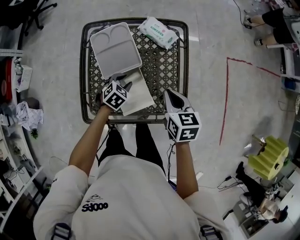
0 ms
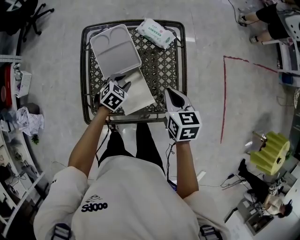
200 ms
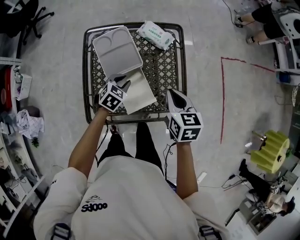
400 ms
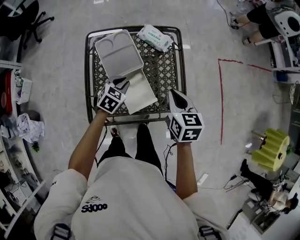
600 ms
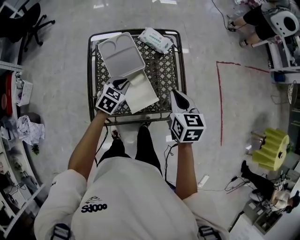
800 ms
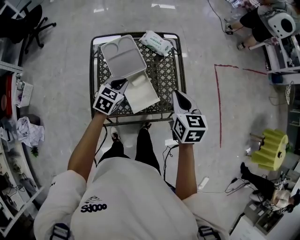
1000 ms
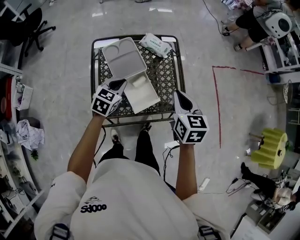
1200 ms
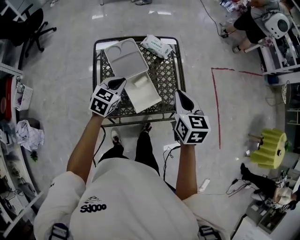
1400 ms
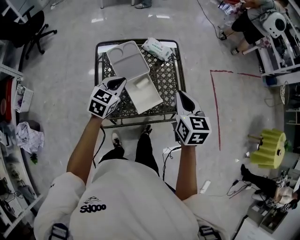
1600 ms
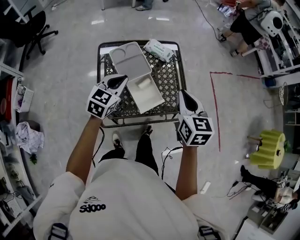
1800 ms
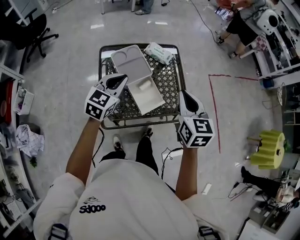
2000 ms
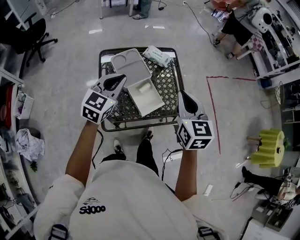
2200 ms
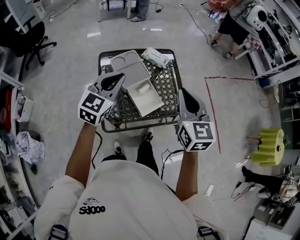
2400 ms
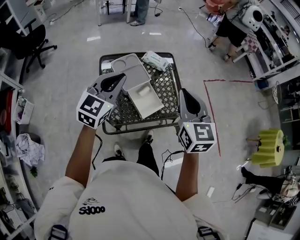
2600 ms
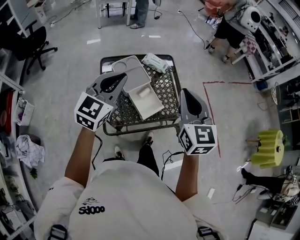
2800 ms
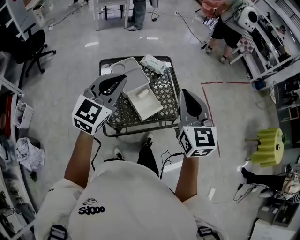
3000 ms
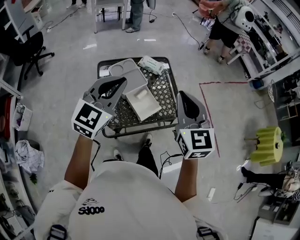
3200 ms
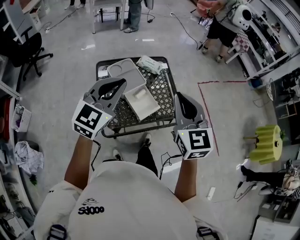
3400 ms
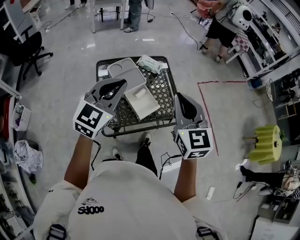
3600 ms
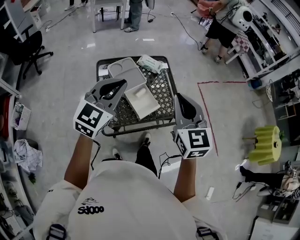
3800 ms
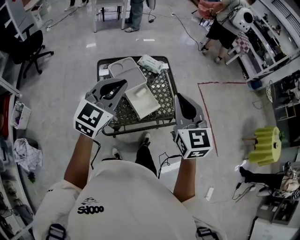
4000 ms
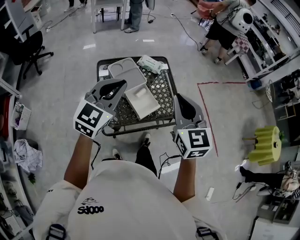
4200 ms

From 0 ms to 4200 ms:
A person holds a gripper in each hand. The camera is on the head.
From 0 ms to 1400 ms: The right gripper travels upward and backward by roughly 15 cm; the left gripper is displaced upward by approximately 20 cm, turns by some 30 degrees, and closes.
From 1400 ms to 2800 ms: The left gripper goes approximately 25 cm upward, and turns by about 30 degrees; the right gripper moves upward and backward, roughly 20 cm, and swivels some 20 degrees.
From 2800 ms to 4200 ms: The grippers move only a little.

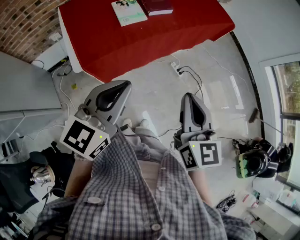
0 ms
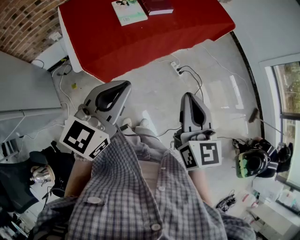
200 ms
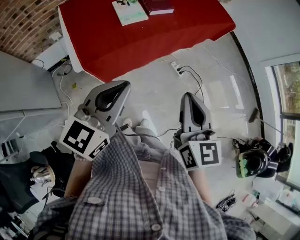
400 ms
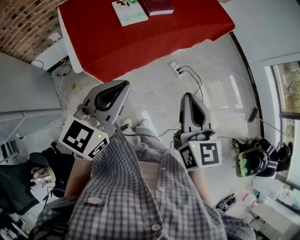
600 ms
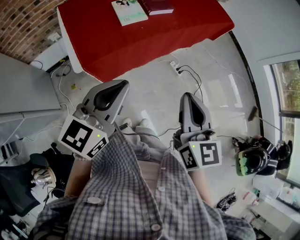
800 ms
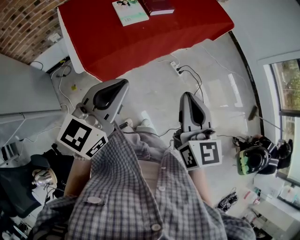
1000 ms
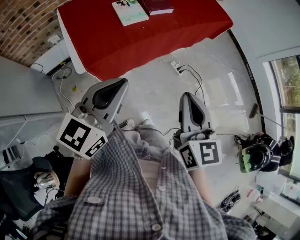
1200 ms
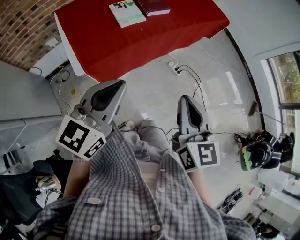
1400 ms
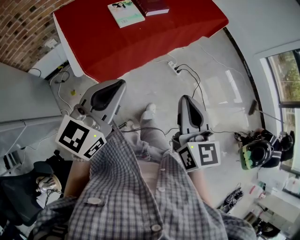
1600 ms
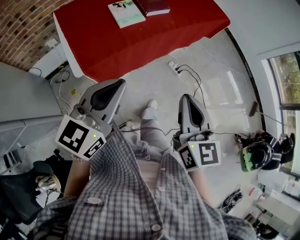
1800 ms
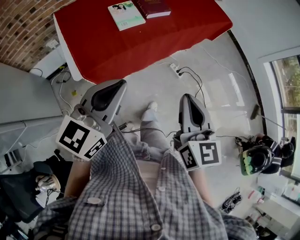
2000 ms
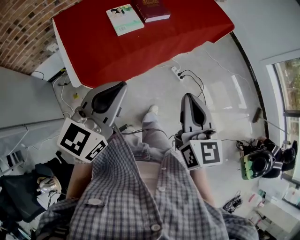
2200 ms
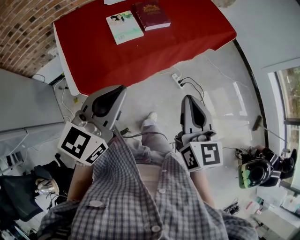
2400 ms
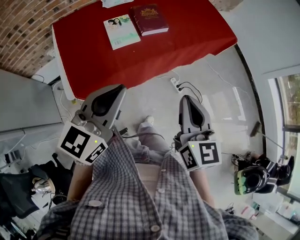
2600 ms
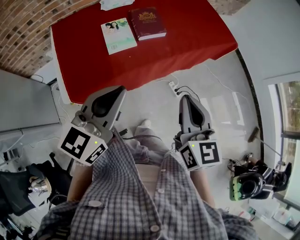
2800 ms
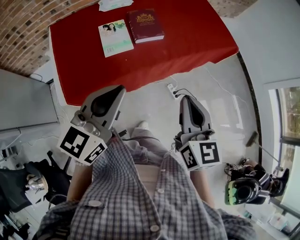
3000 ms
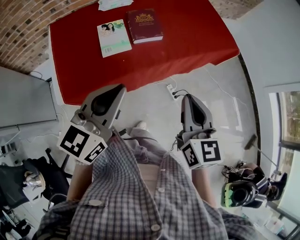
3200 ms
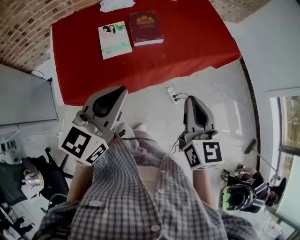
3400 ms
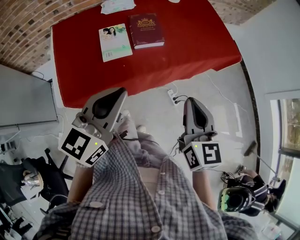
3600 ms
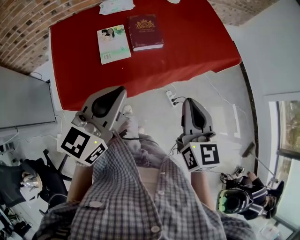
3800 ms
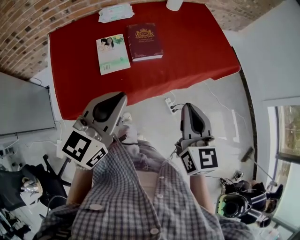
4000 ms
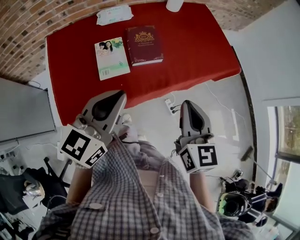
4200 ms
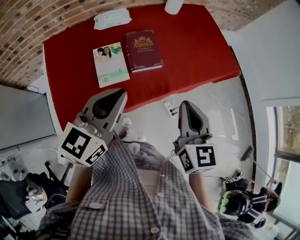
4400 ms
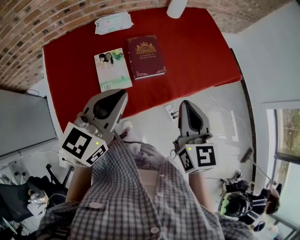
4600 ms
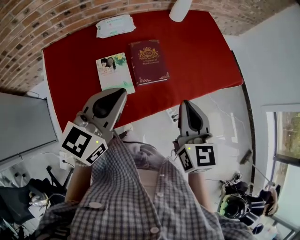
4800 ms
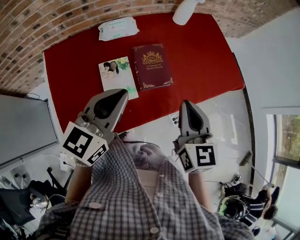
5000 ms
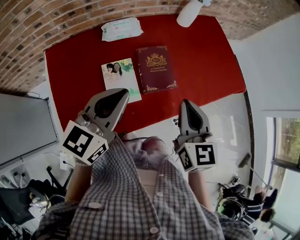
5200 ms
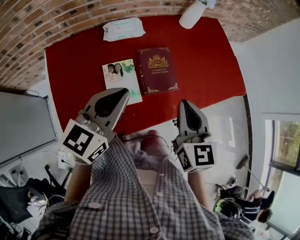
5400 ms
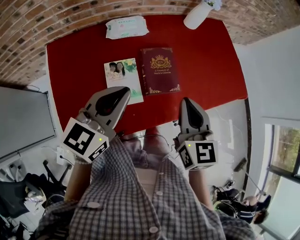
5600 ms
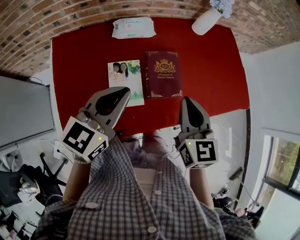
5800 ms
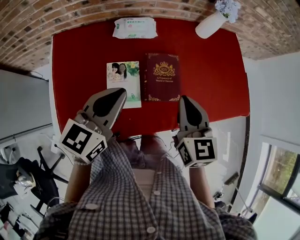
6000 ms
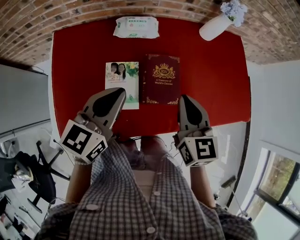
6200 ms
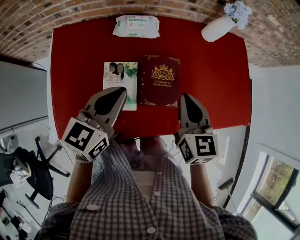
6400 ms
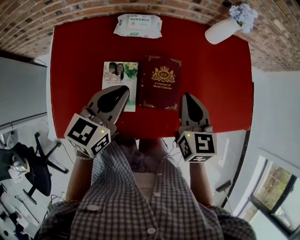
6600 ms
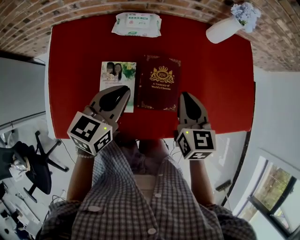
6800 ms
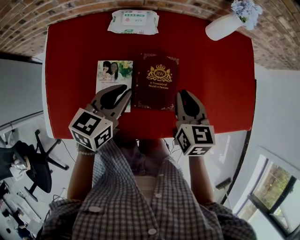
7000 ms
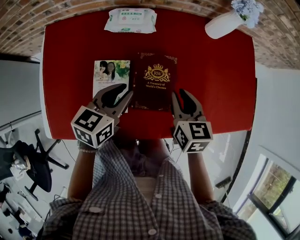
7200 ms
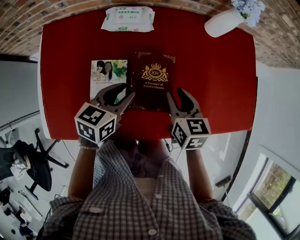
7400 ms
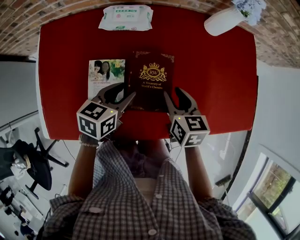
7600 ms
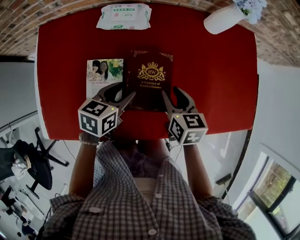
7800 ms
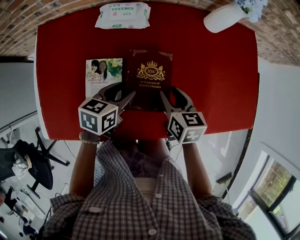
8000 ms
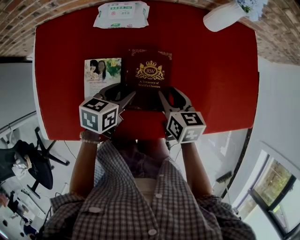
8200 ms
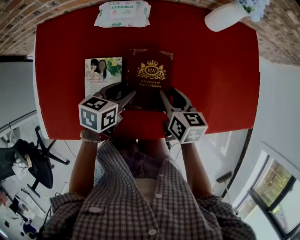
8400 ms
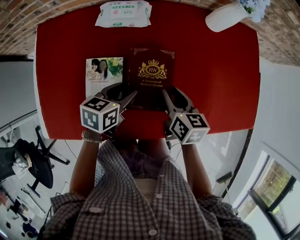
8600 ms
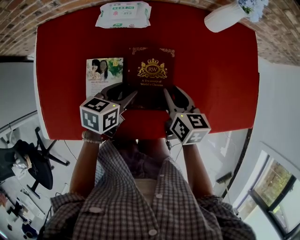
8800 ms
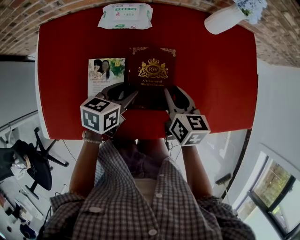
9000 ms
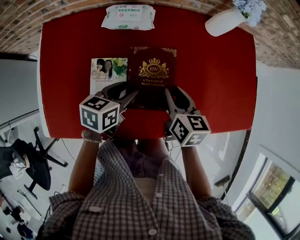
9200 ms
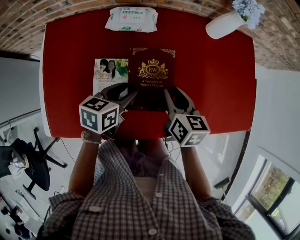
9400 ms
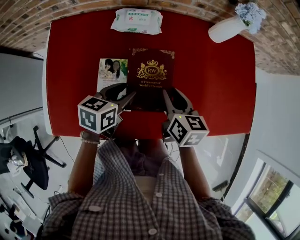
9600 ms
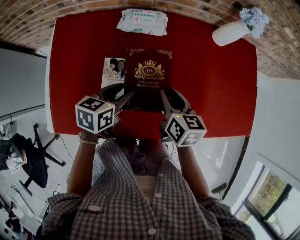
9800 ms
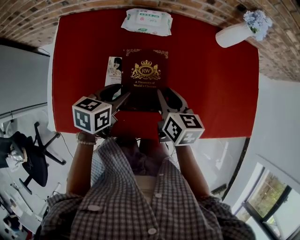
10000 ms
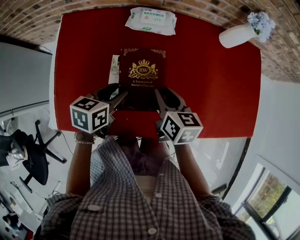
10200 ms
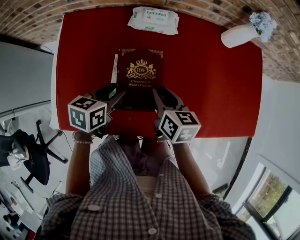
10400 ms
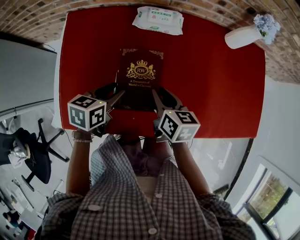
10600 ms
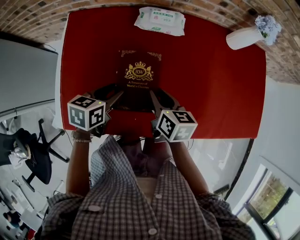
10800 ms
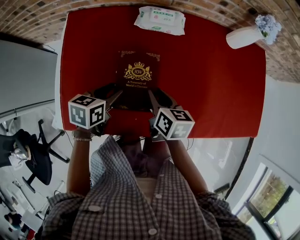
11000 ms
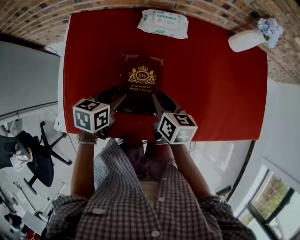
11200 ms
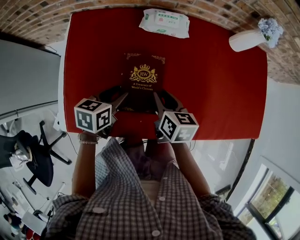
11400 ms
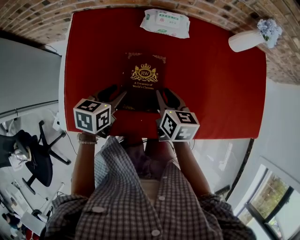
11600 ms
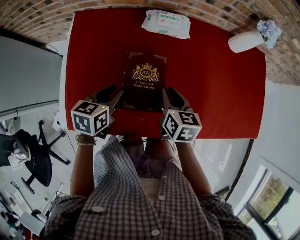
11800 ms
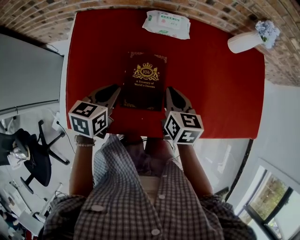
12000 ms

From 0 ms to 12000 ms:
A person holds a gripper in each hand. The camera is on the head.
From 0 ms to 1600 ms: The grippers stay close to where they were, moving slightly.
From 1600 ms to 3000 ms: Both grippers travel together forward, about 20 cm.
From 3000 ms to 4400 ms: The two grippers go about 15 cm forward.
From 4400 ms to 6000 ms: Both grippers move forward and to the left, some 20 cm.
From 6000 ms to 7600 ms: The left gripper travels downward, to the right and forward by approximately 20 cm, turns by approximately 30 degrees, and opens its fingers; the right gripper travels downward and forward by about 20 cm, swivels about 30 degrees, and opens.
From 7600 ms to 9000 ms: There are only small adjustments of the grippers.
From 9000 ms to 10400 ms: Both grippers move to the left, approximately 10 cm.
From 10400 ms to 12000 ms: The right gripper closes; the left gripper goes approximately 5 cm to the left, and closes up.

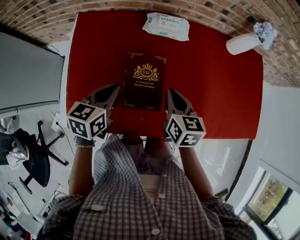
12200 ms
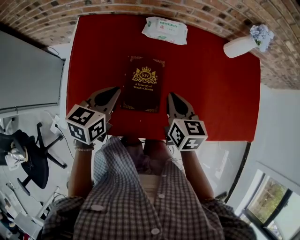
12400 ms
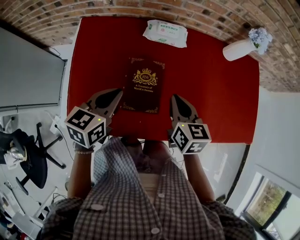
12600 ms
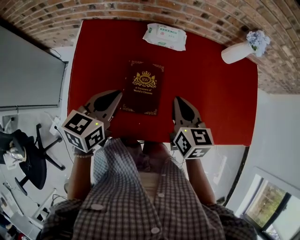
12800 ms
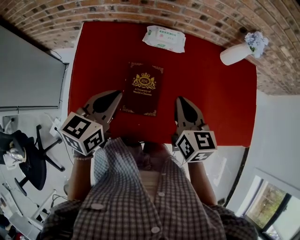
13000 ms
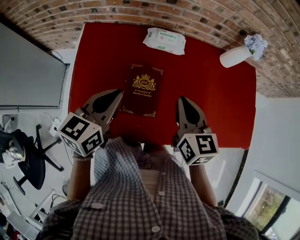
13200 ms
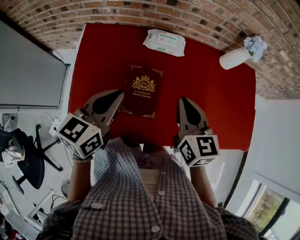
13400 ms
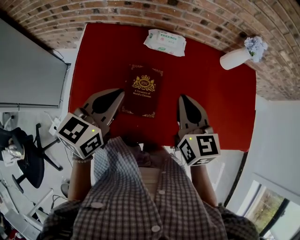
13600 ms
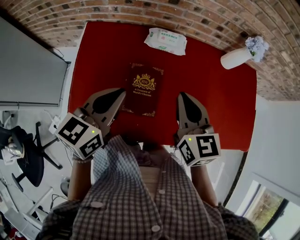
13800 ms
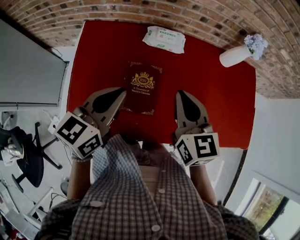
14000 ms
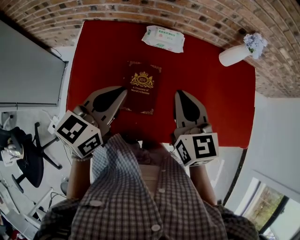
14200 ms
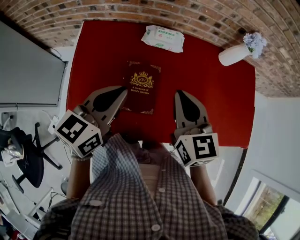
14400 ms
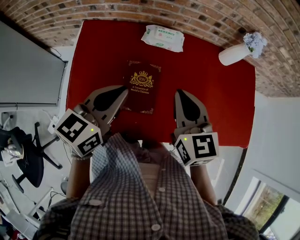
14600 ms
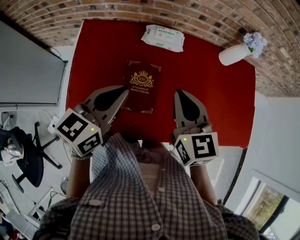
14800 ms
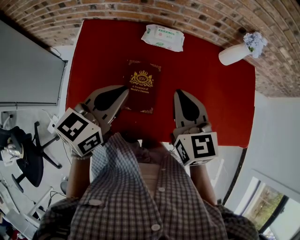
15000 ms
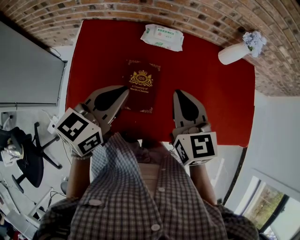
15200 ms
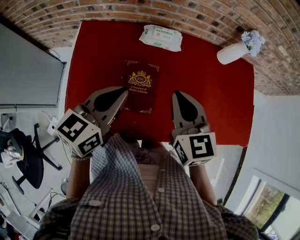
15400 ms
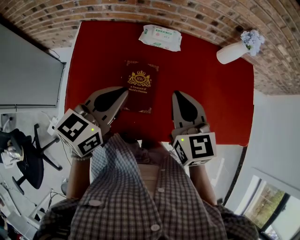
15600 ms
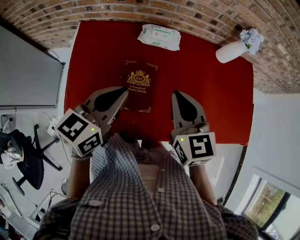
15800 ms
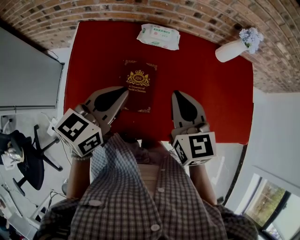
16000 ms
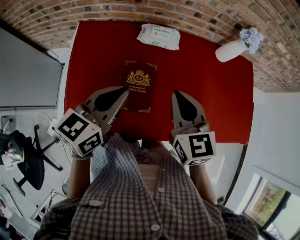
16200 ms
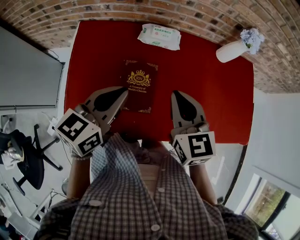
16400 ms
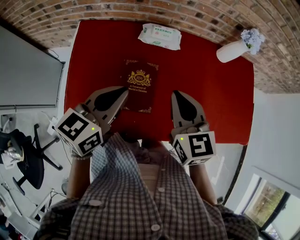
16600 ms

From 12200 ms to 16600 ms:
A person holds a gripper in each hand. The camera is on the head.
From 12200 ms to 13600 ms: Both grippers move upward, roughly 15 cm.
From 13600 ms to 15200 ms: There are only small adjustments of the grippers.
From 15200 ms to 16600 ms: Both grippers stay about where they are.

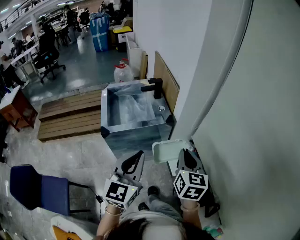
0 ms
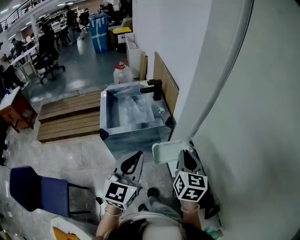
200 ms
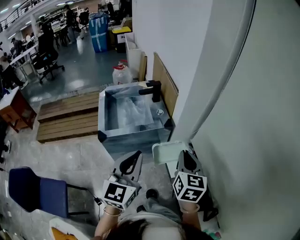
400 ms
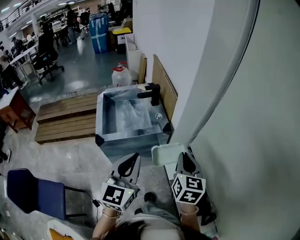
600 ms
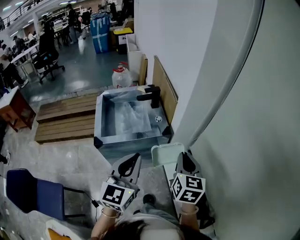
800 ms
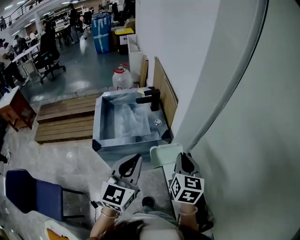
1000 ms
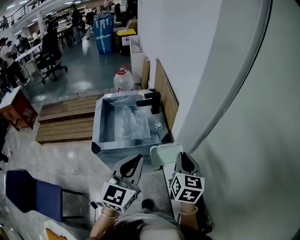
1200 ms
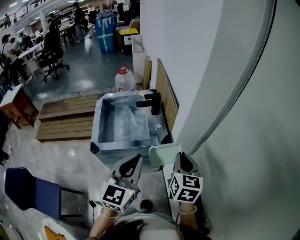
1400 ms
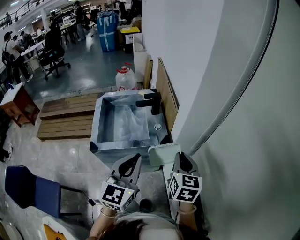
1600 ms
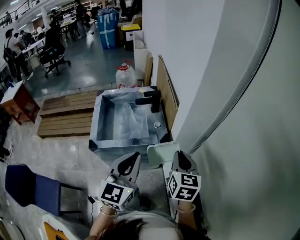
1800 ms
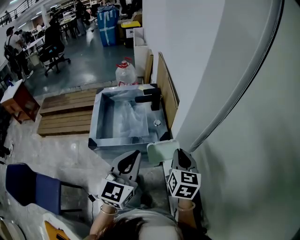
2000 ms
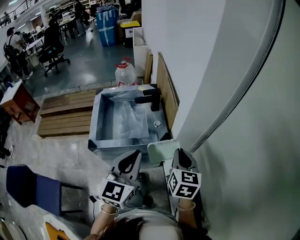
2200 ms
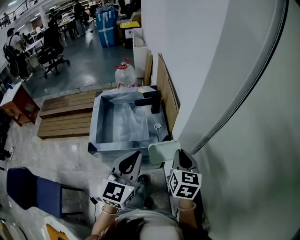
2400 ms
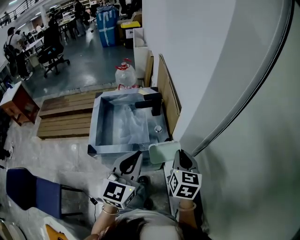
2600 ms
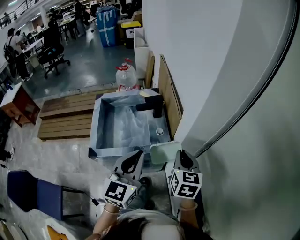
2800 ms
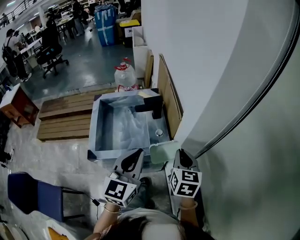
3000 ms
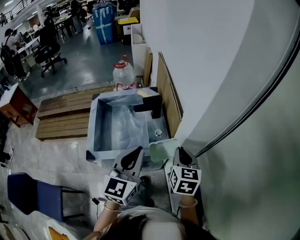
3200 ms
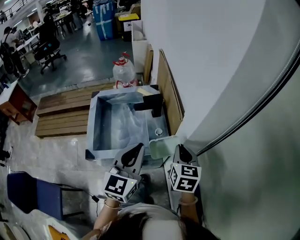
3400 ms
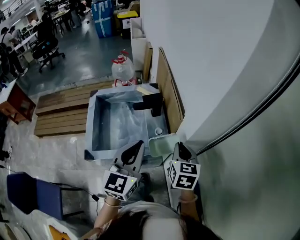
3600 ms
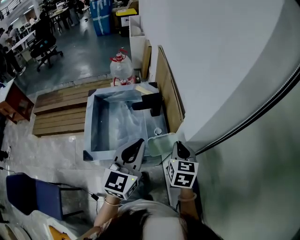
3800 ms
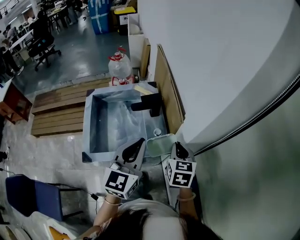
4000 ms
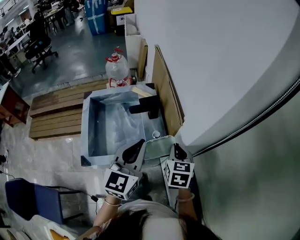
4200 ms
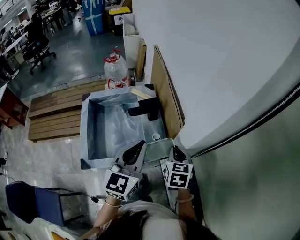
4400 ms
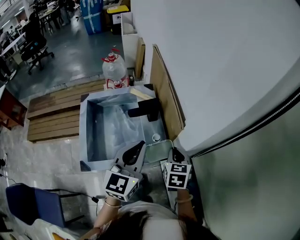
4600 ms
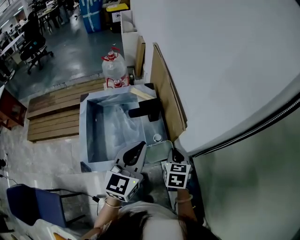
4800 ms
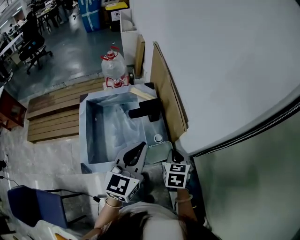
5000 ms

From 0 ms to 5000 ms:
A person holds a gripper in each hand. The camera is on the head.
From 0 ms to 1600 ms: The grippers both shift forward by approximately 15 cm.
From 1600 ms to 3400 ms: Both grippers move forward, about 15 cm.
From 3400 ms to 5000 ms: The left gripper heads forward, covering approximately 10 cm, while the right gripper moves downward and forward, some 10 cm.
